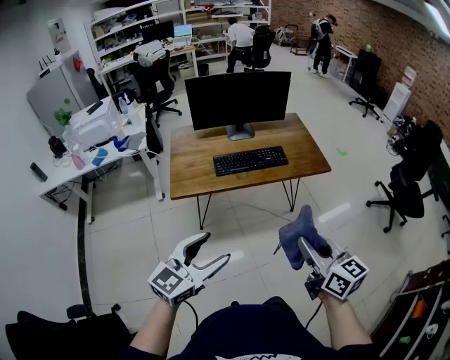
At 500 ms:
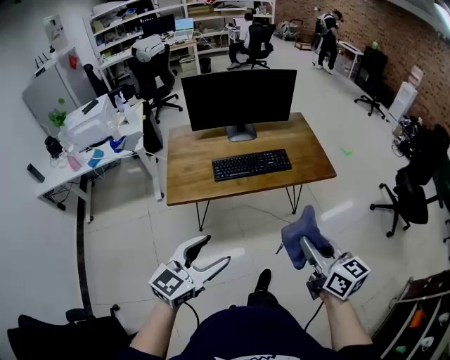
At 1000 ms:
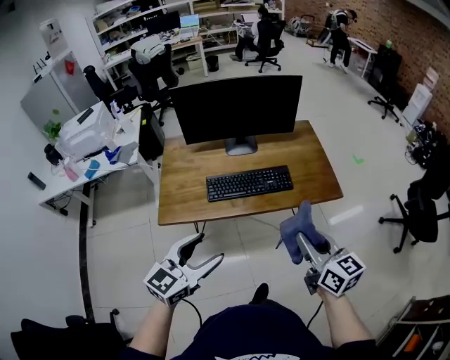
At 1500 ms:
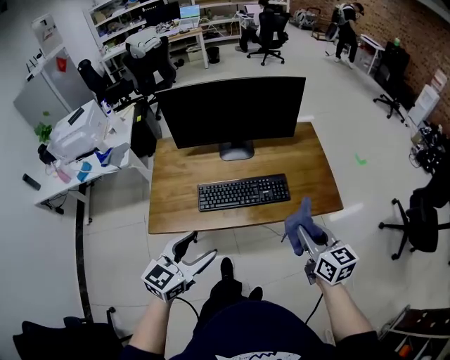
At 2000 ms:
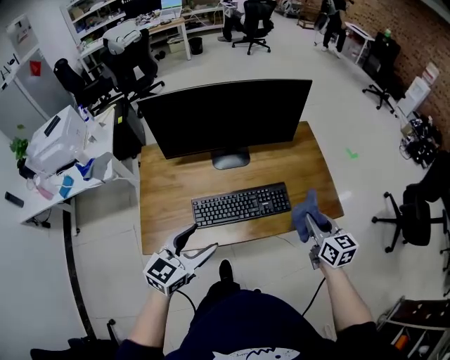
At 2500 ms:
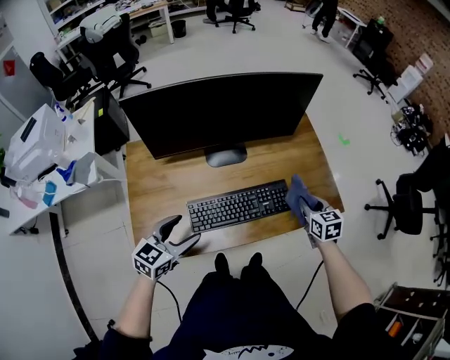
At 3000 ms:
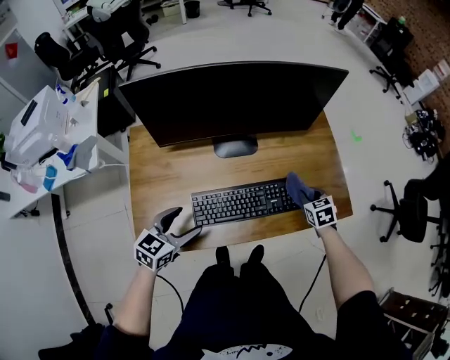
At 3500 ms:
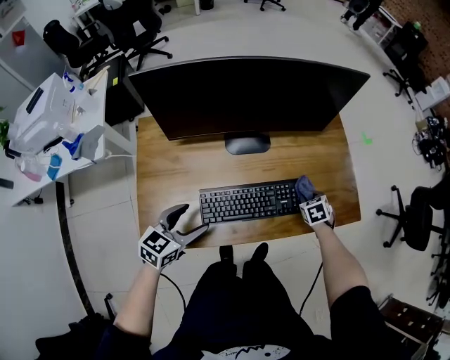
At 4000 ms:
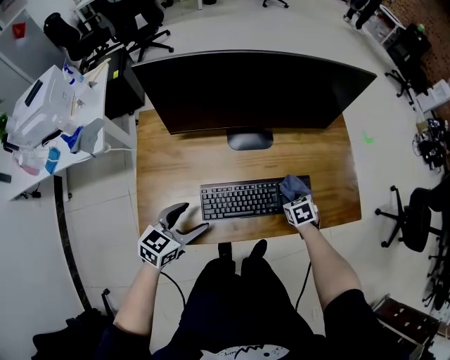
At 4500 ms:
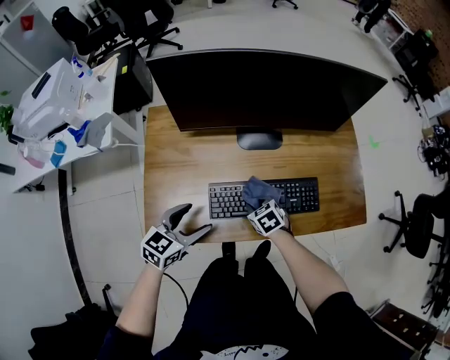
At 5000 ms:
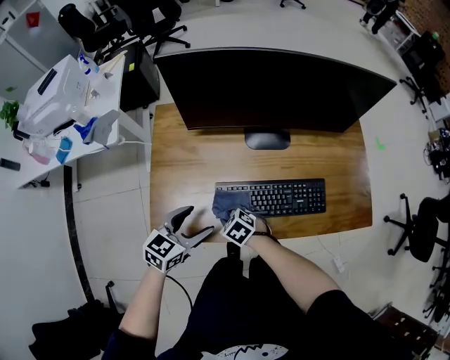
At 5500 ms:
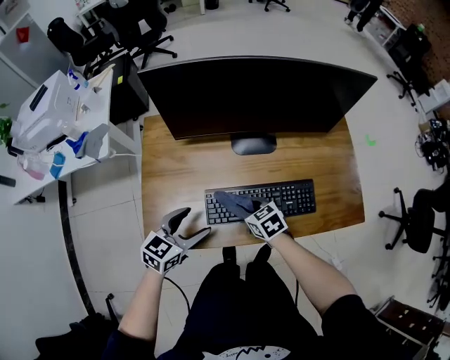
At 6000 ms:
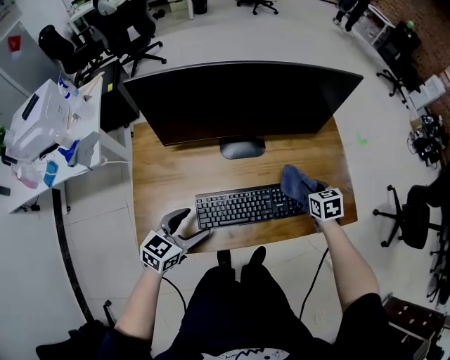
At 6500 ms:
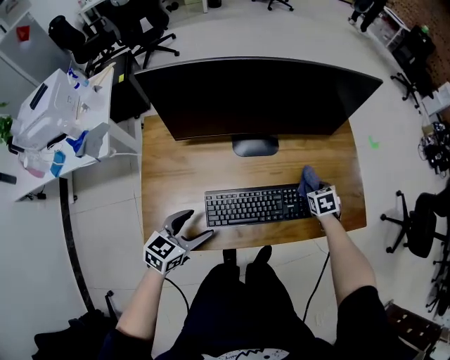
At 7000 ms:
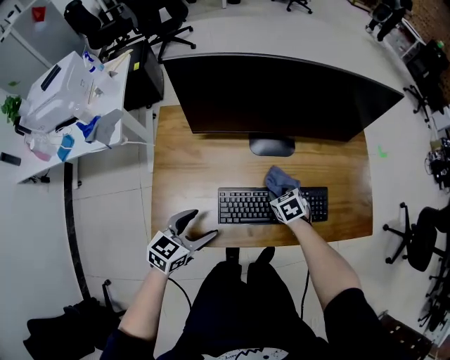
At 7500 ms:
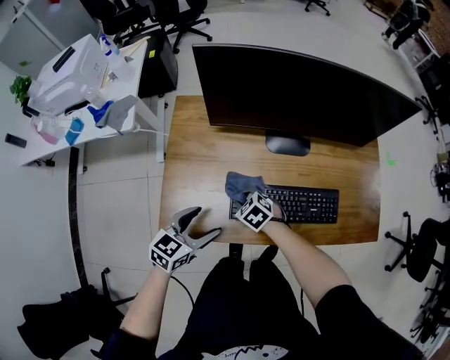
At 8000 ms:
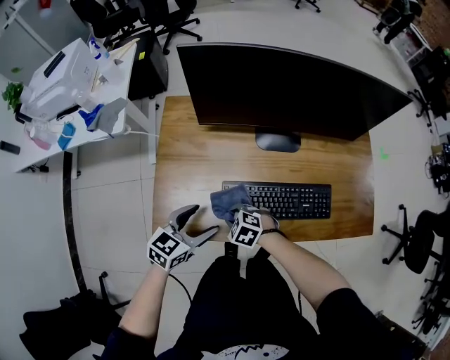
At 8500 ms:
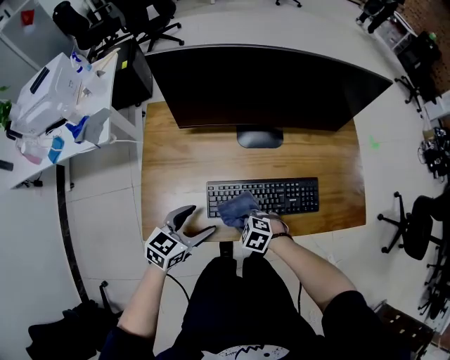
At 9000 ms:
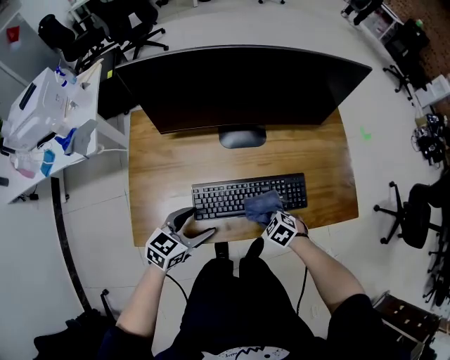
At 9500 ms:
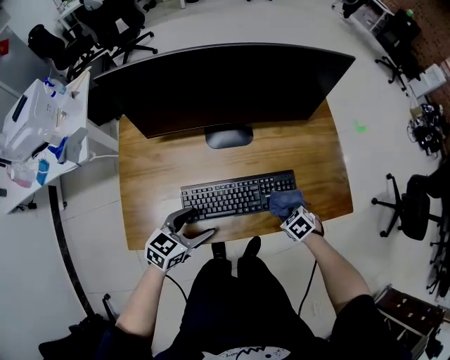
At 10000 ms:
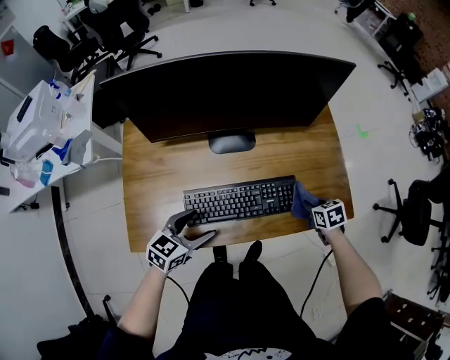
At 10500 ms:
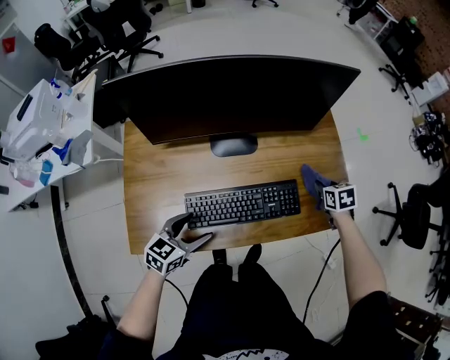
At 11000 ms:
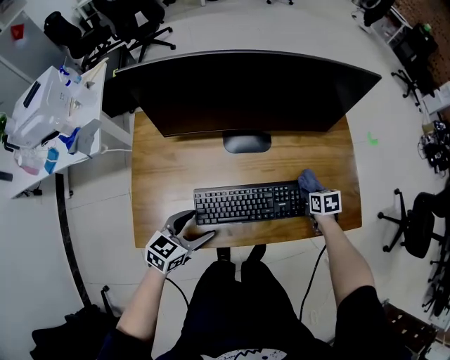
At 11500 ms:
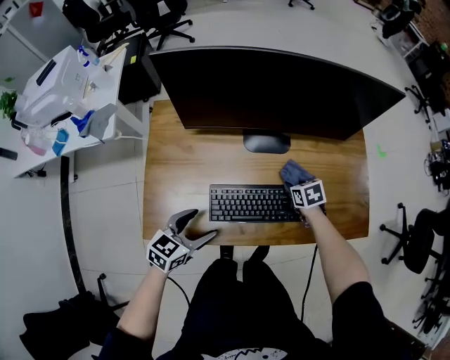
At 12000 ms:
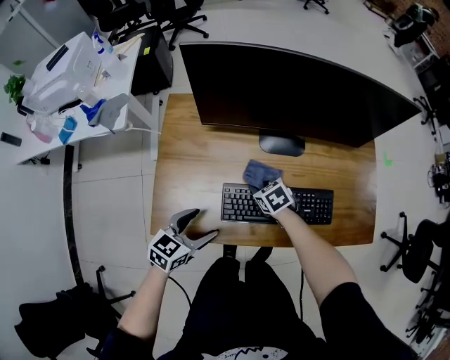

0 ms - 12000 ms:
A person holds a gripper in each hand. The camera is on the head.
0 ms - 2000 ms: The pair of grippers is taken forward, about 50 cm.
2000 ms - 4000 ms: The right gripper is displaced downward and to the left by approximately 30 cm, and angles its fingers downward, by about 40 degrees, while the left gripper heads downward, to the left and forward, covering about 20 cm.
4000 ms - 6000 ms: The right gripper moves upward, some 10 cm.
6000 ms - 8000 ms: The left gripper moves some 5 cm. The right gripper shifts by approximately 40 cm, and changes its angle by approximately 60 degrees.
8000 ms - 10000 ms: The right gripper changes place by about 40 cm, and rolls clockwise, seen from behind, by about 60 degrees. Meanwhile the left gripper moves some 10 cm.
10000 ms - 12000 ms: The left gripper moves about 10 cm. Meanwhile the right gripper moves roughly 35 cm, and rotates roughly 30 degrees.

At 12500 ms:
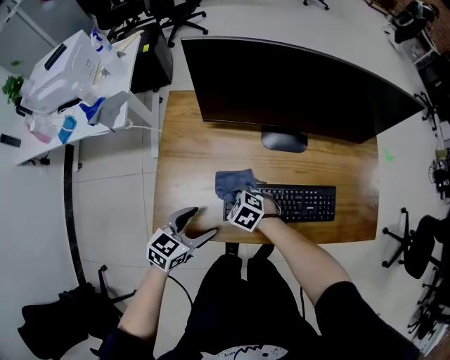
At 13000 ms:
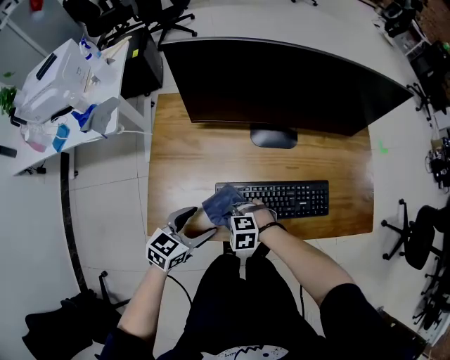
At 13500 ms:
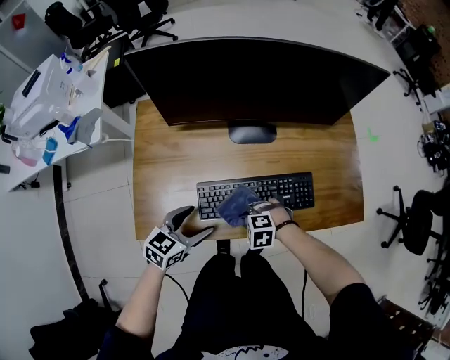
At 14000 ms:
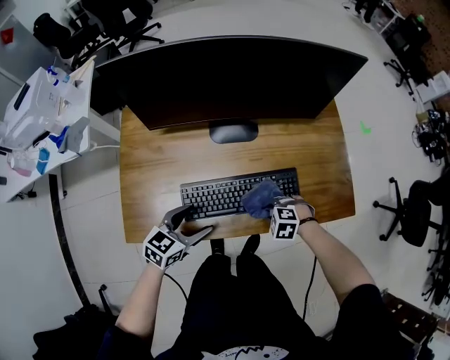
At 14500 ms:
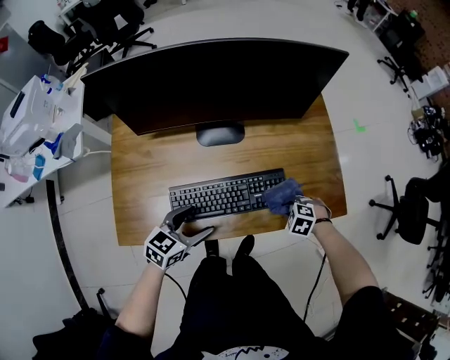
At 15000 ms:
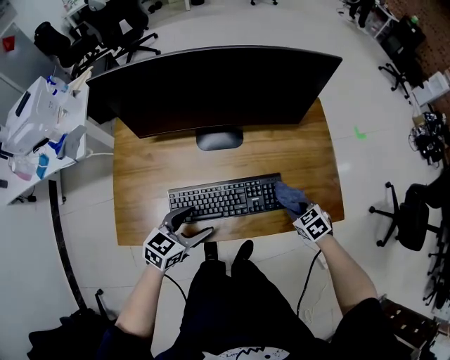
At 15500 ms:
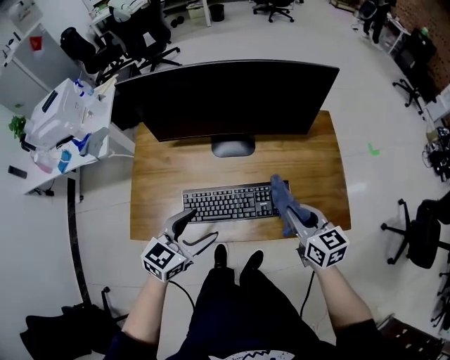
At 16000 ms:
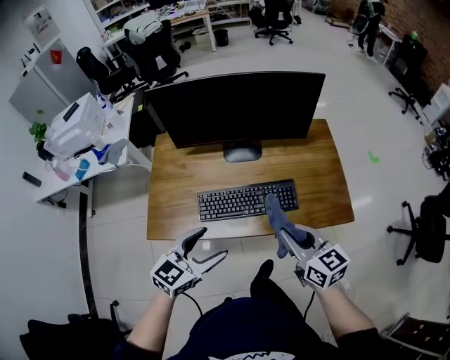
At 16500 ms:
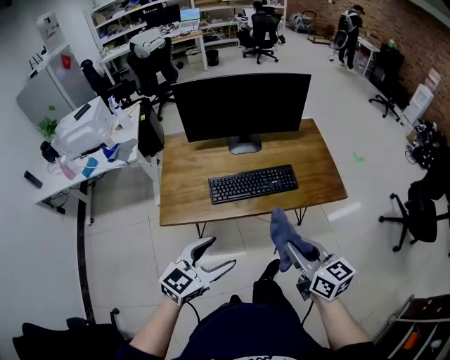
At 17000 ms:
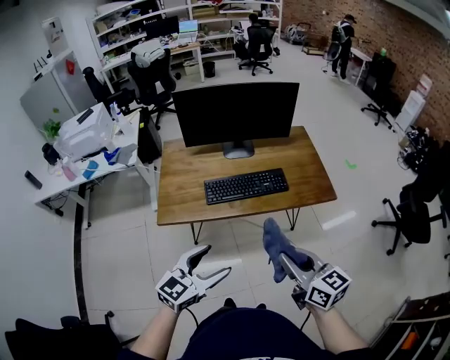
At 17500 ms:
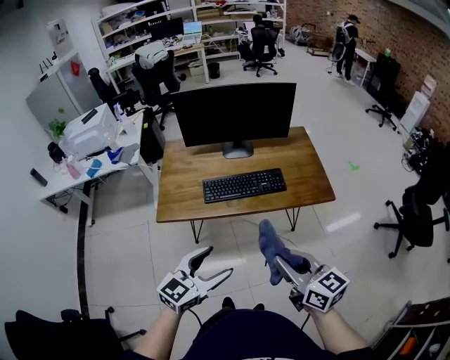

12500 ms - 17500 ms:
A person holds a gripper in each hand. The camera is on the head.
12500 ms - 15000 ms: The right gripper shifts by approximately 40 cm, and swivels approximately 30 degrees, while the left gripper moves about 20 cm.
15000 ms - 17500 ms: Both grippers move backward and upward, approximately 50 cm. The left gripper changes its angle by about 20 degrees. The right gripper tilts its fingers approximately 50 degrees upward.

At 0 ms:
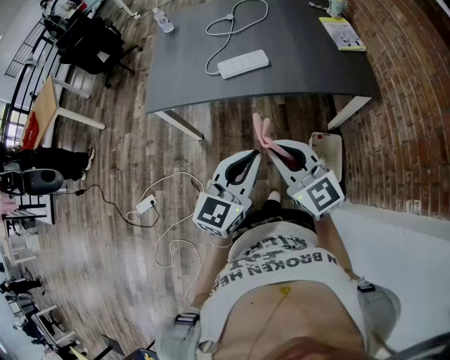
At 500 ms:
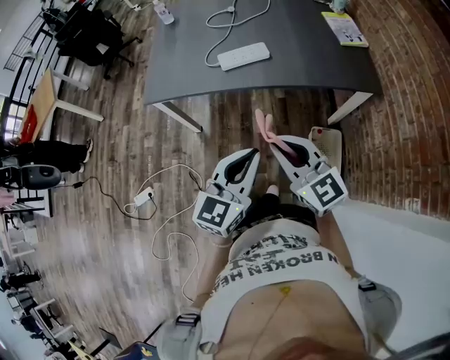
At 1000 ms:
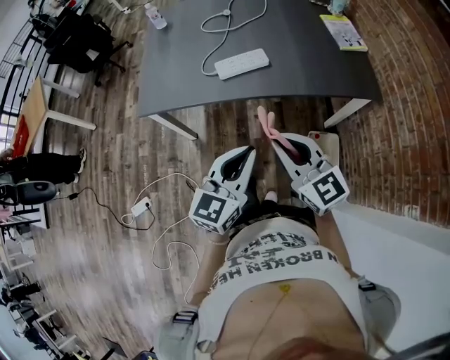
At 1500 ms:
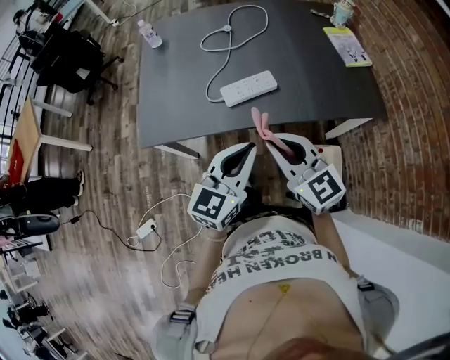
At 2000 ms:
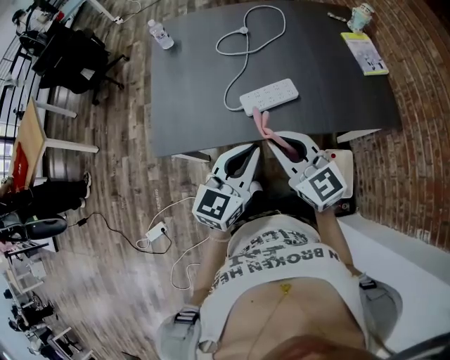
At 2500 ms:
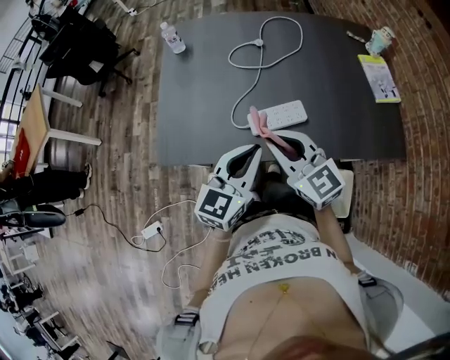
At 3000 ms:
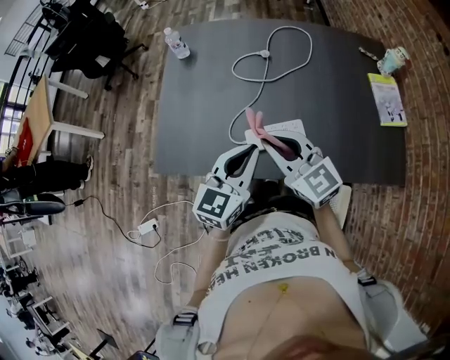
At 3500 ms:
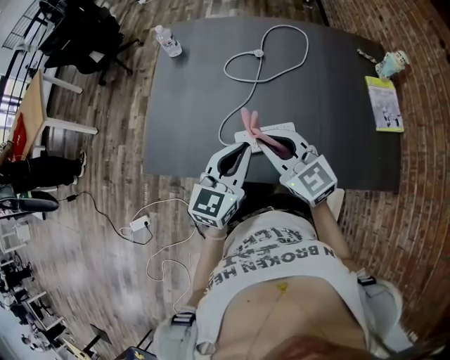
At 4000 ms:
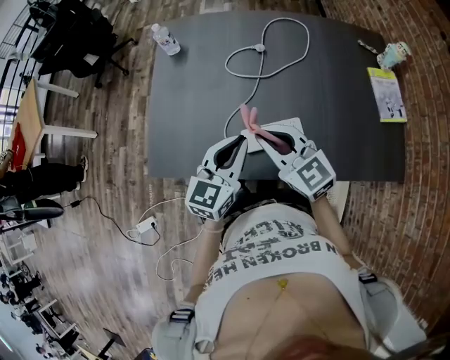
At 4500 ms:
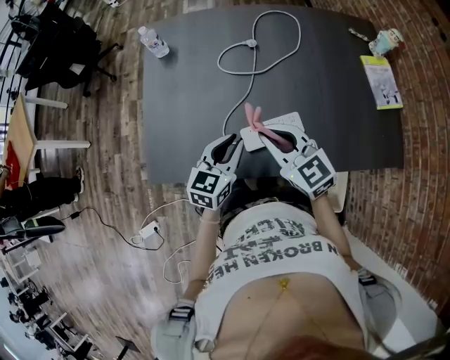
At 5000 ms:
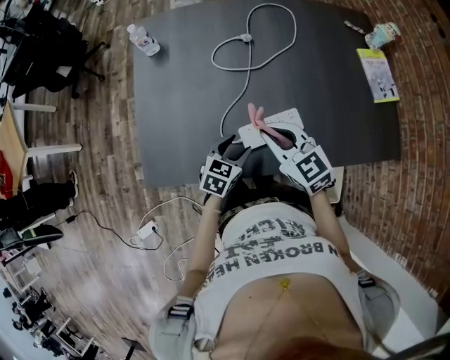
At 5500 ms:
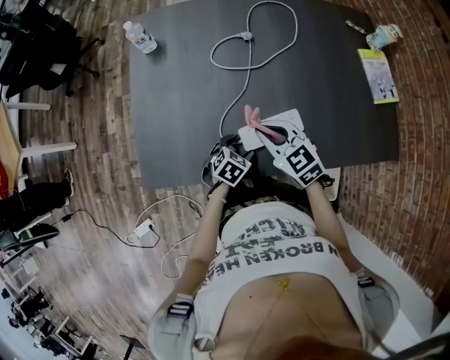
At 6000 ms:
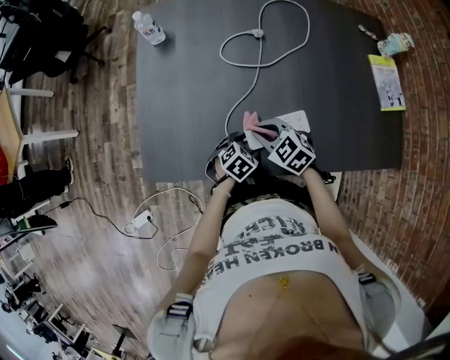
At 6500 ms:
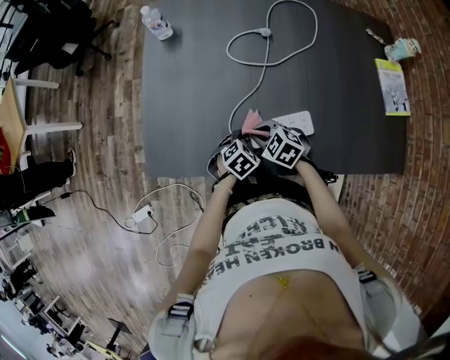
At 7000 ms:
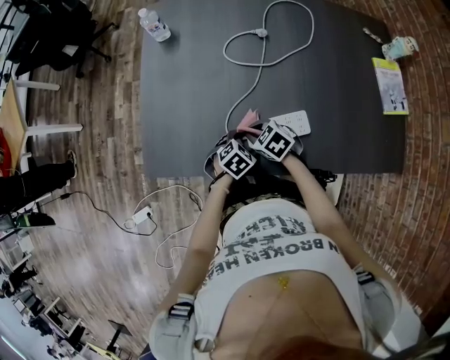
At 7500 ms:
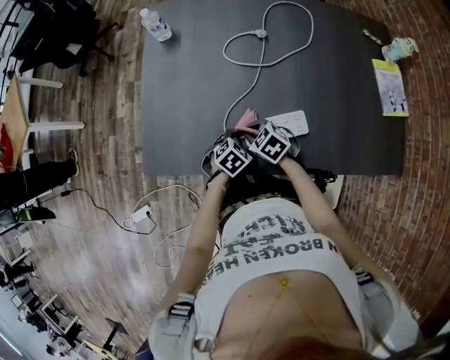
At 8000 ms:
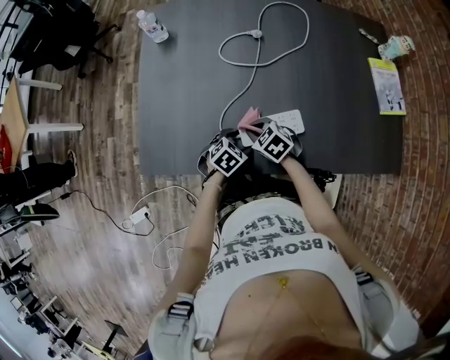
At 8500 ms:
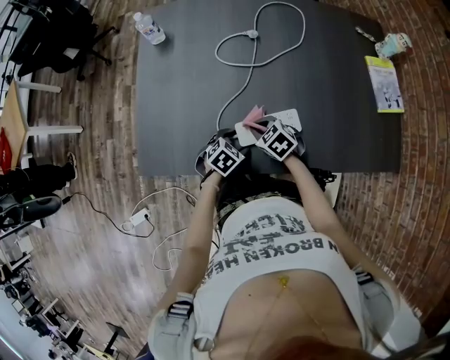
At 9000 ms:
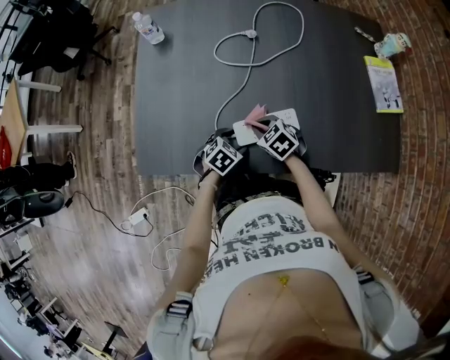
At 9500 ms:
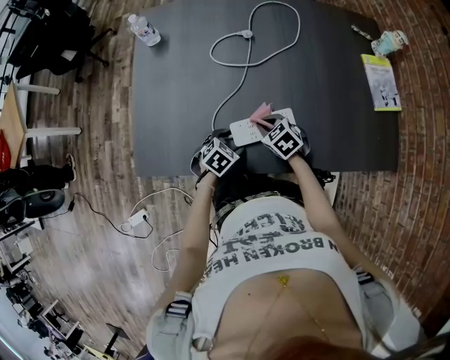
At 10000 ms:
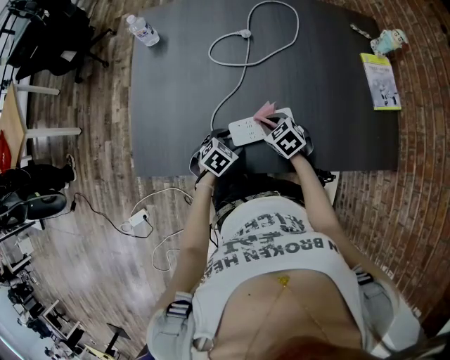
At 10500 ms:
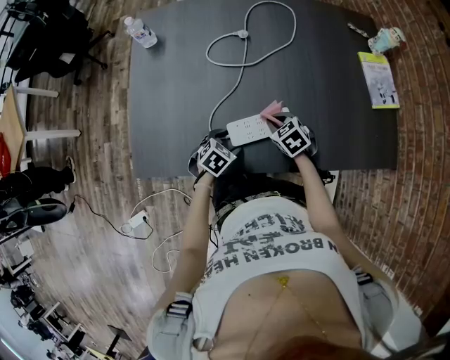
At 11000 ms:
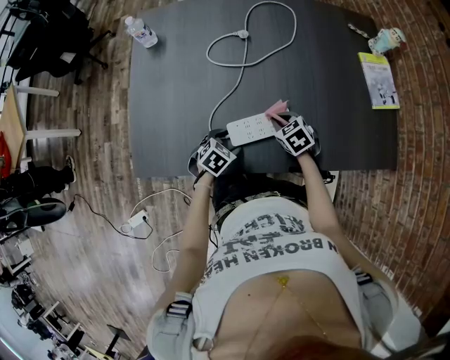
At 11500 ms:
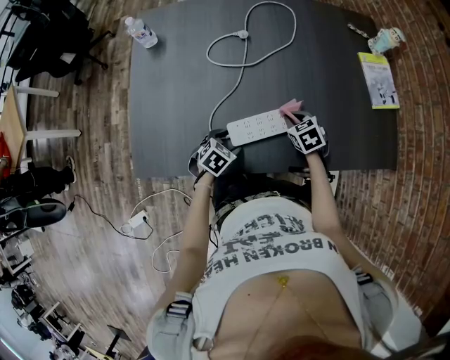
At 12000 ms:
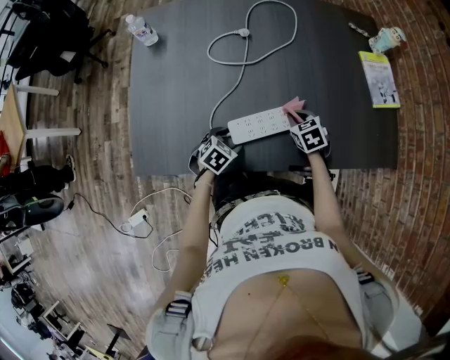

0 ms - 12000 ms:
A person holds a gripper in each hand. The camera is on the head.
0 ms - 2000 ms: The two grippers go about 30 cm forward and to the left.
2000 ms - 4000 ms: The grippers both shift forward by some 20 cm.
4000 ms - 6000 ms: The grippers both shift downward by about 25 cm. The right gripper tilts its fingers about 30 degrees downward. Meanwhile the left gripper tilts its fingers roughly 50 degrees downward, and opens.
6000 ms - 8000 ms: The right gripper goes some 5 cm downward.
8000 ms - 10000 ms: The right gripper changes place by roughly 10 cm.
10000 ms - 12000 ms: The right gripper travels to the right by some 10 cm.
